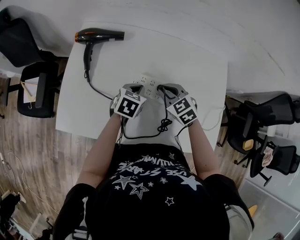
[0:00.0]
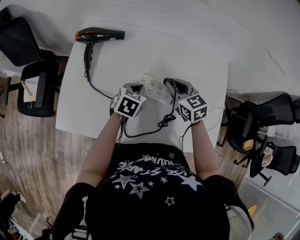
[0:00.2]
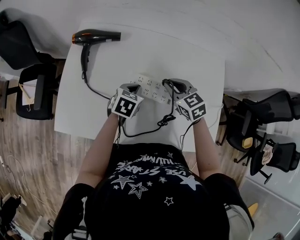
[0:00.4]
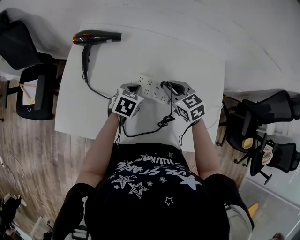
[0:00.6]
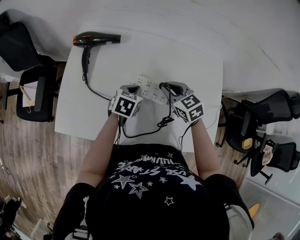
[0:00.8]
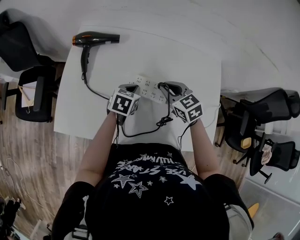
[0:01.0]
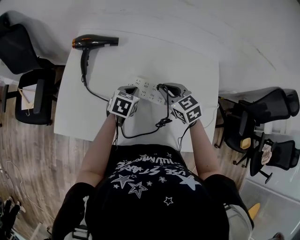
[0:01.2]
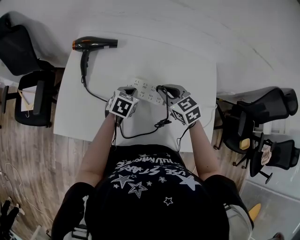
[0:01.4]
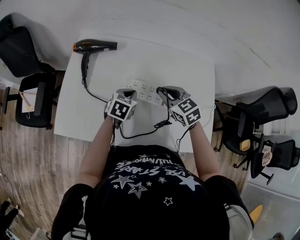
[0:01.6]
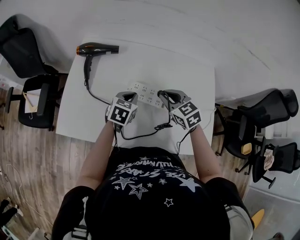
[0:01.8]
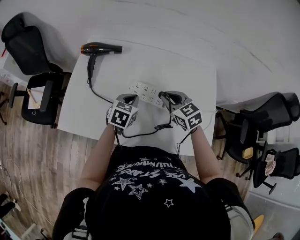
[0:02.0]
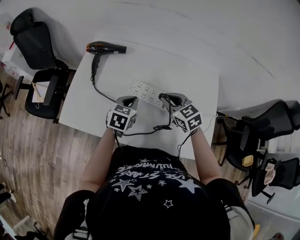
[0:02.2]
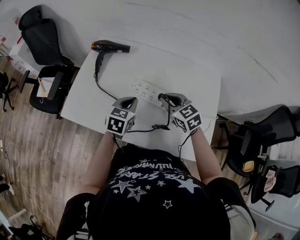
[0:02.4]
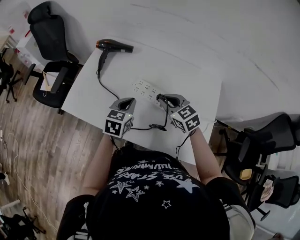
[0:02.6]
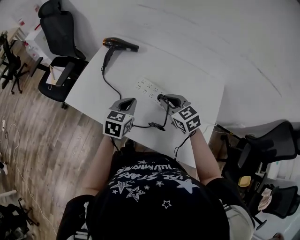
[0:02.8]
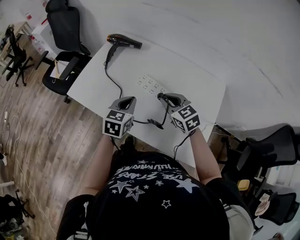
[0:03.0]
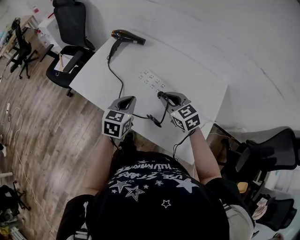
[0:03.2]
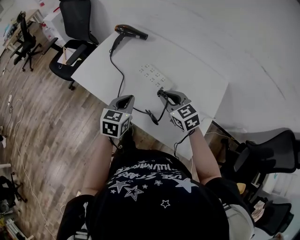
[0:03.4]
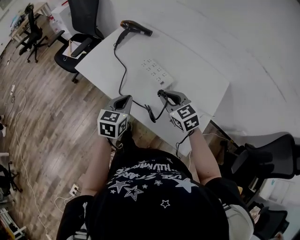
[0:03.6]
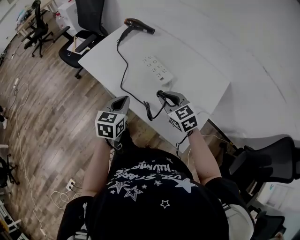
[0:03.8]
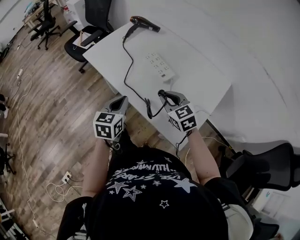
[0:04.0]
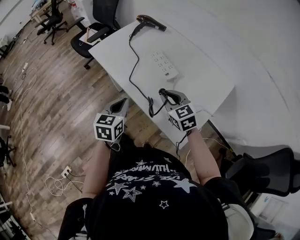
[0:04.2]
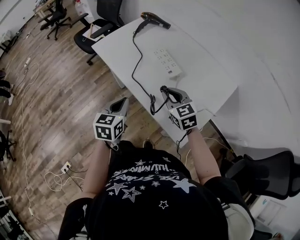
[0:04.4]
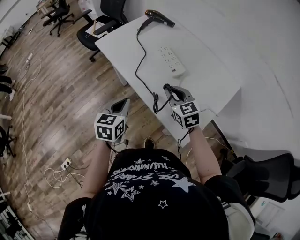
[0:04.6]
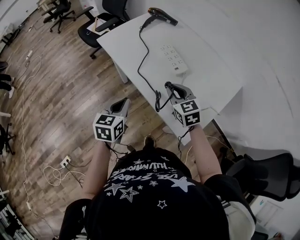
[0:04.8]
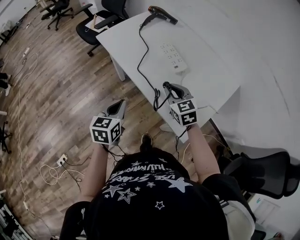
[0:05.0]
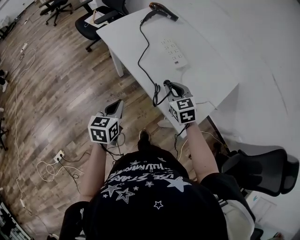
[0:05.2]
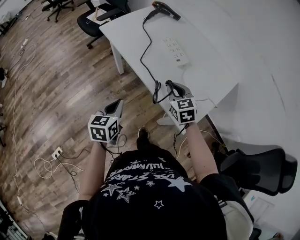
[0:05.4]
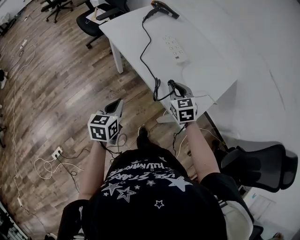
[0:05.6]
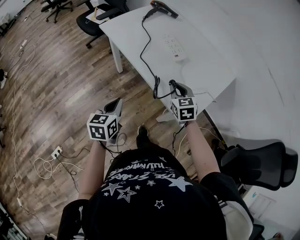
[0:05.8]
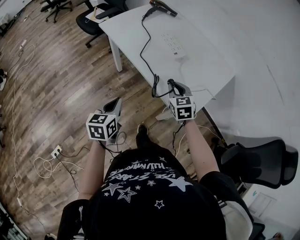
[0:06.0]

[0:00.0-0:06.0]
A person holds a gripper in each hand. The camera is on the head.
0:00.0 to 0:01.6: The right gripper goes approximately 5 cm upward.
0:01.6 to 0:03.0: The right gripper shifts by roughly 10 cm, and swivels some 20 degrees; the left gripper changes place by some 15 cm, and turns by roughly 30 degrees.
0:03.0 to 0:04.4: Both grippers travel together backward, roughly 20 cm. The left gripper changes its angle by roughly 30 degrees.
0:04.4 to 0:06.0: The left gripper heads backward and to the left, covering some 15 cm; the right gripper is displaced backward by roughly 5 cm.

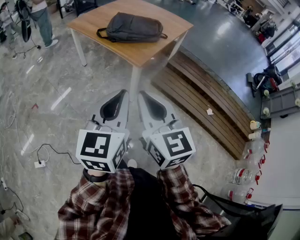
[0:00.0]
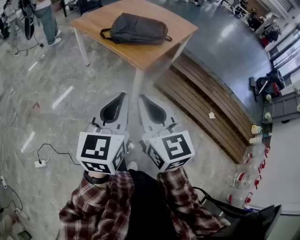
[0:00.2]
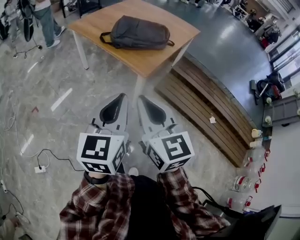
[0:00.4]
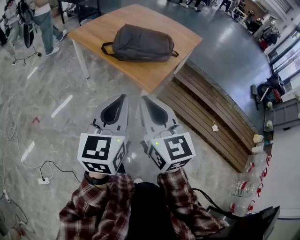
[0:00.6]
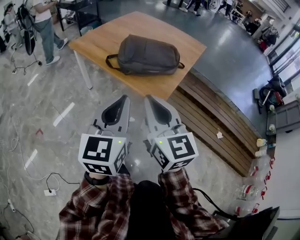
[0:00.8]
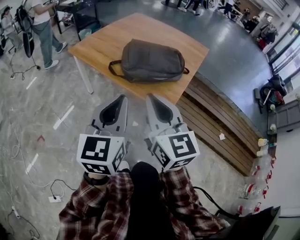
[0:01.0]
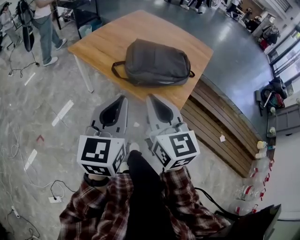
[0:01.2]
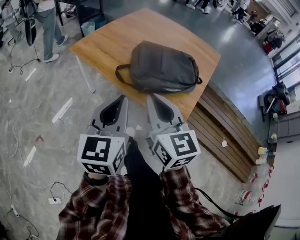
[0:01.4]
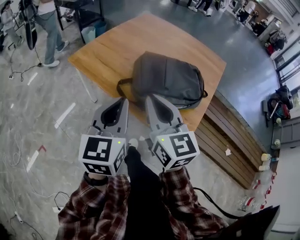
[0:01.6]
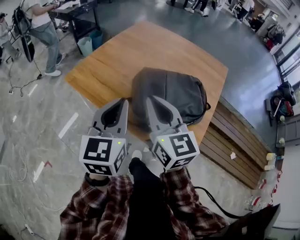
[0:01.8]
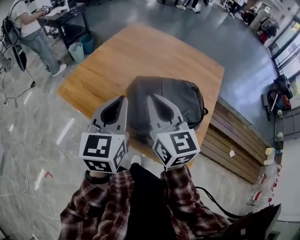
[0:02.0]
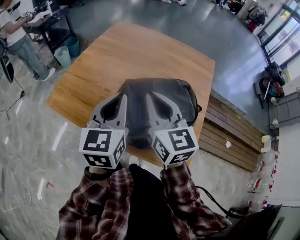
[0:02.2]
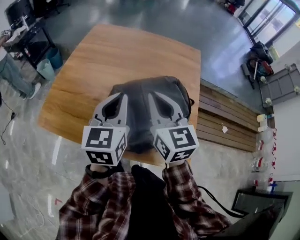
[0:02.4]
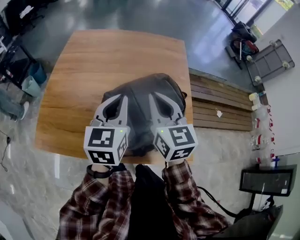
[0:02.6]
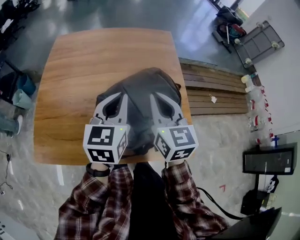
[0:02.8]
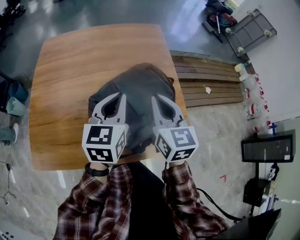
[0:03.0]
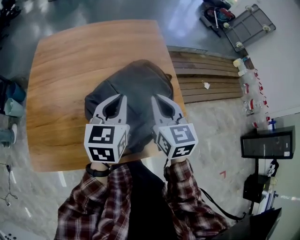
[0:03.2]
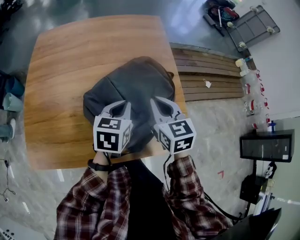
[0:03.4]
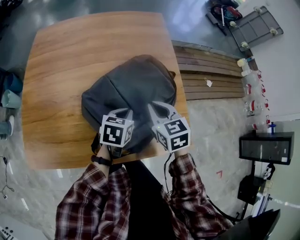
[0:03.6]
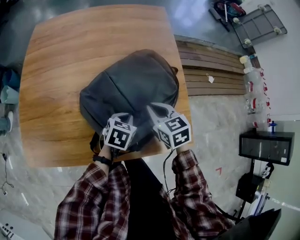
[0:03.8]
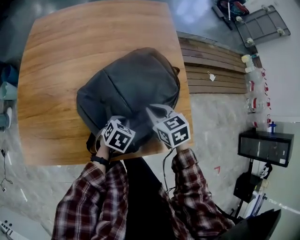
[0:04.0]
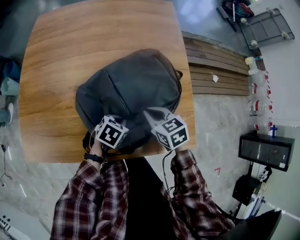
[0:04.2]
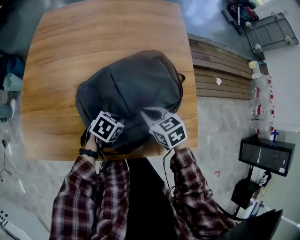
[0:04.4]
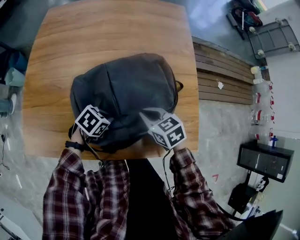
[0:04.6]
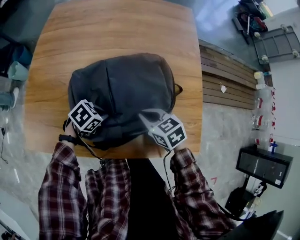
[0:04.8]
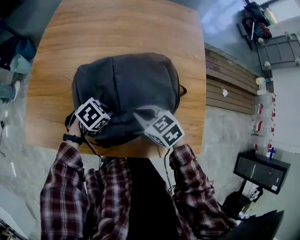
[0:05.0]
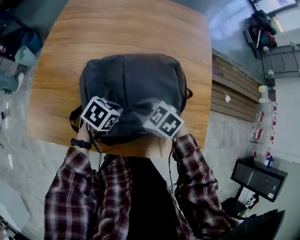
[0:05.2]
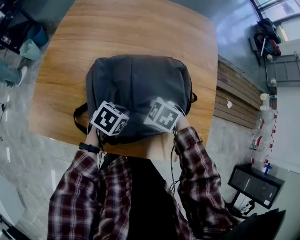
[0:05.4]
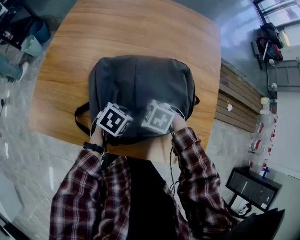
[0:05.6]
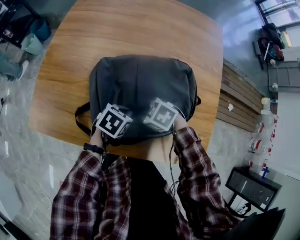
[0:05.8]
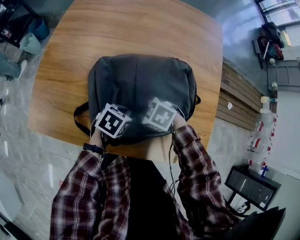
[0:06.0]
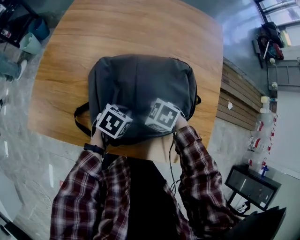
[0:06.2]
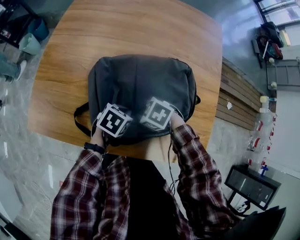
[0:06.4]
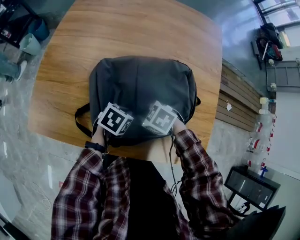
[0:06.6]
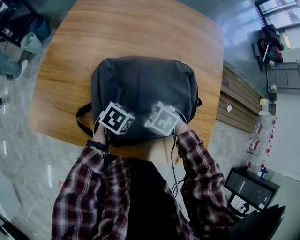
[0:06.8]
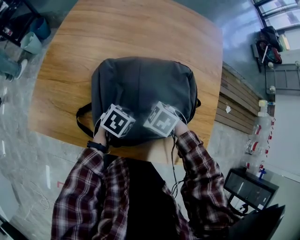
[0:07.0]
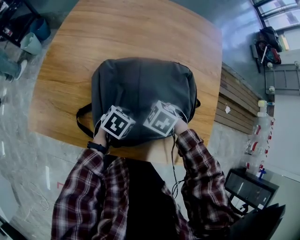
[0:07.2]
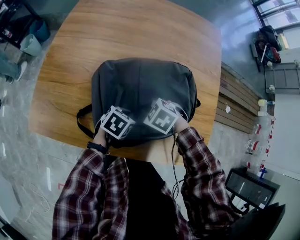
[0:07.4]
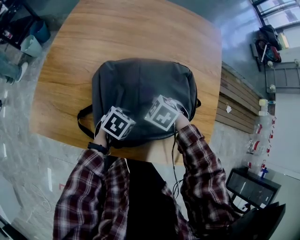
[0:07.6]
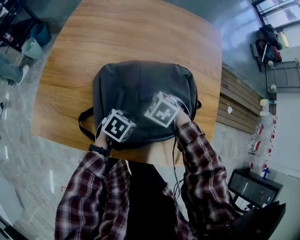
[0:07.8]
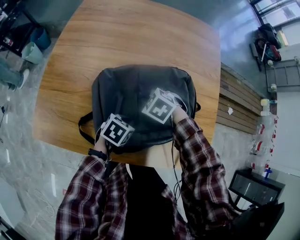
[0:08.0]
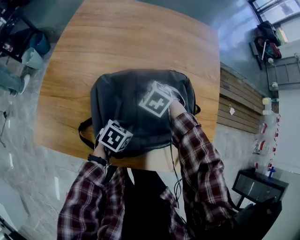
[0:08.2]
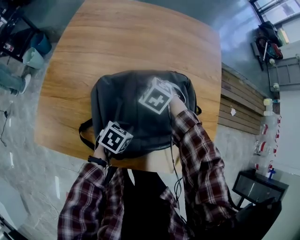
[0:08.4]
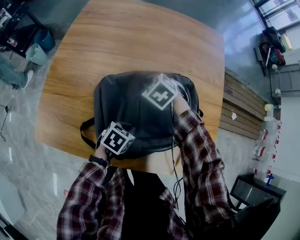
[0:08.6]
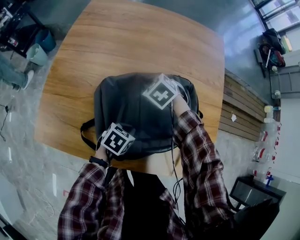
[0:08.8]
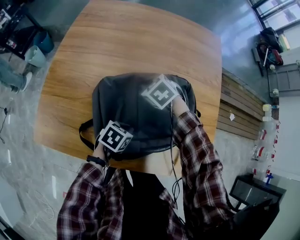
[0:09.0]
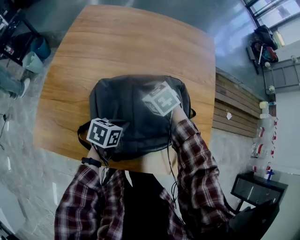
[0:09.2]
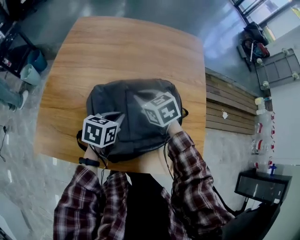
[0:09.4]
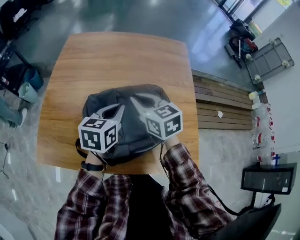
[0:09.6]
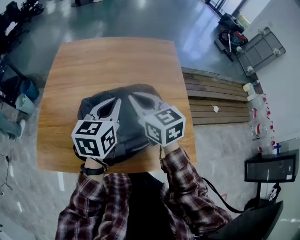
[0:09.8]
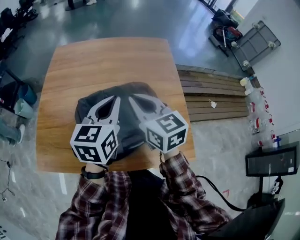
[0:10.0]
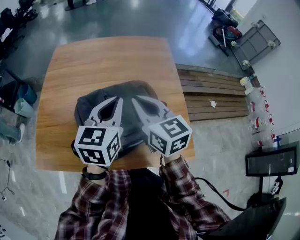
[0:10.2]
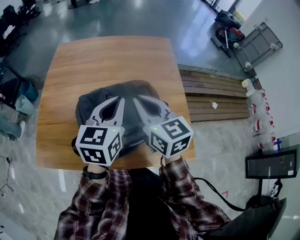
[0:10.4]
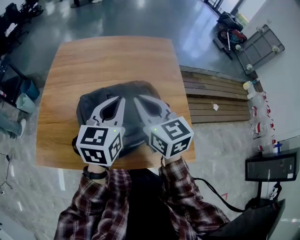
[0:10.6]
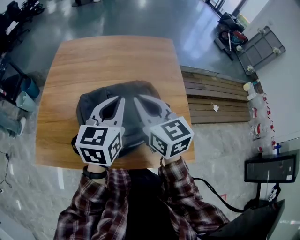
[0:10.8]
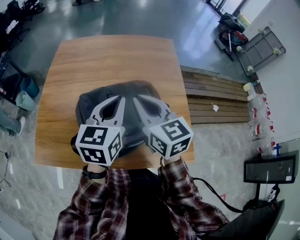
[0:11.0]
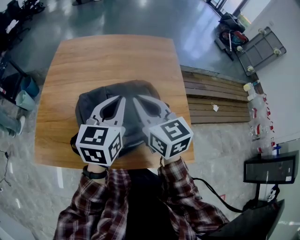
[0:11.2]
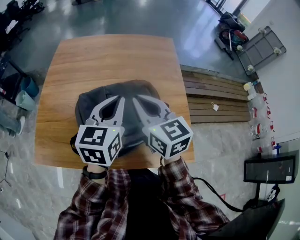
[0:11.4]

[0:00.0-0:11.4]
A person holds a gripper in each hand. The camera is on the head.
0:00.0 to 0:01.4: The pair of grippers is taken forward and to the left, approximately 50 cm.
0:01.4 to 0:02.8: The left gripper changes place by about 50 cm, and turns by about 40 degrees. The right gripper changes place by about 40 cm, and rotates roughly 50 degrees.
0:02.8 to 0:04.2: The grippers both shift downward by approximately 30 cm. The right gripper tilts its fingers approximately 30 degrees downward, while the left gripper tips its fingers downward by approximately 40 degrees.
0:04.2 to 0:05.6: The right gripper changes place by approximately 15 cm, changes its angle by some 60 degrees, and opens its fingers; the left gripper changes place by about 10 cm.
0:05.6 to 0:07.2: The grippers move only a little.
0:07.2 to 0:08.6: The right gripper changes place by roughly 15 cm.
0:08.6 to 0:10.0: The right gripper heads upward and backward, covering about 30 cm, and angles its fingers upward, by about 50 degrees; the left gripper is displaced upward by about 35 cm, and tips its fingers upward by about 40 degrees.
0:10.0 to 0:11.4: The grippers move only a little.

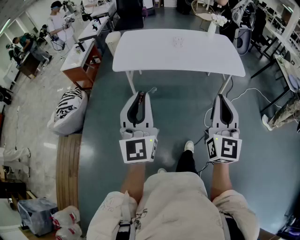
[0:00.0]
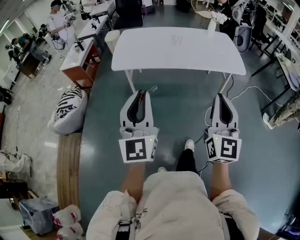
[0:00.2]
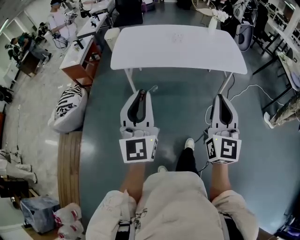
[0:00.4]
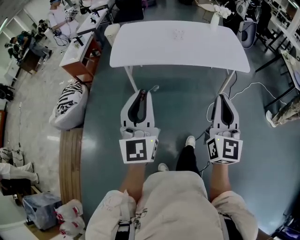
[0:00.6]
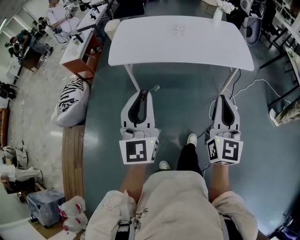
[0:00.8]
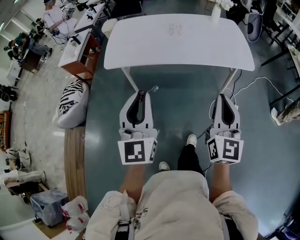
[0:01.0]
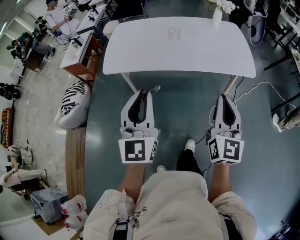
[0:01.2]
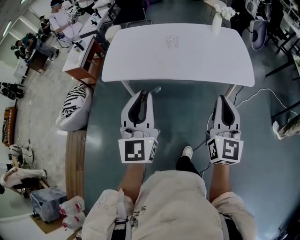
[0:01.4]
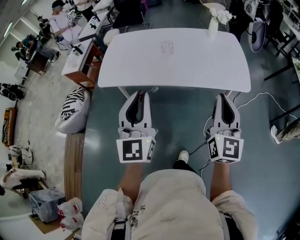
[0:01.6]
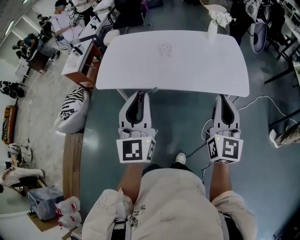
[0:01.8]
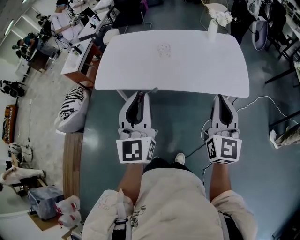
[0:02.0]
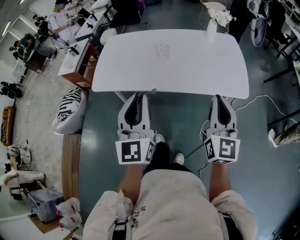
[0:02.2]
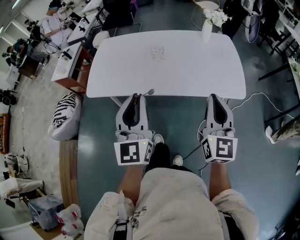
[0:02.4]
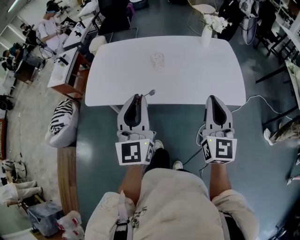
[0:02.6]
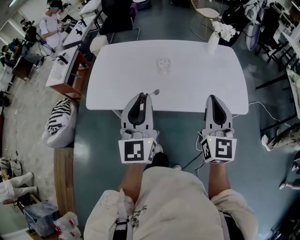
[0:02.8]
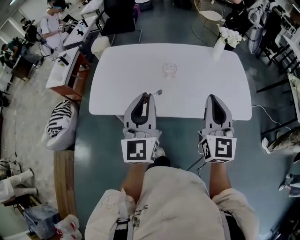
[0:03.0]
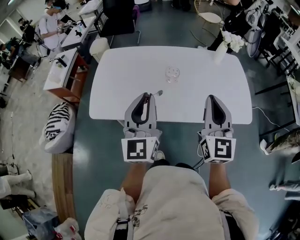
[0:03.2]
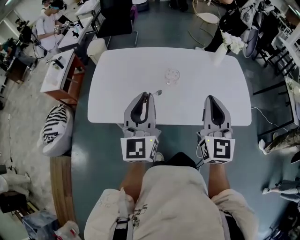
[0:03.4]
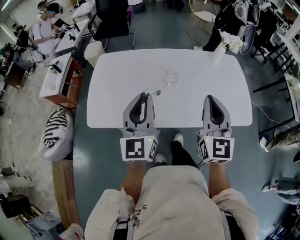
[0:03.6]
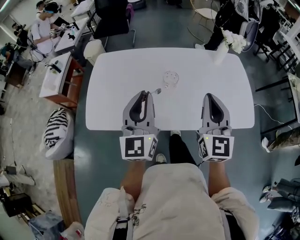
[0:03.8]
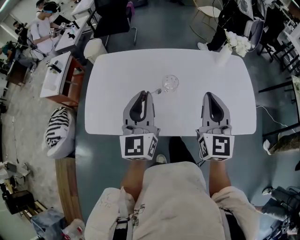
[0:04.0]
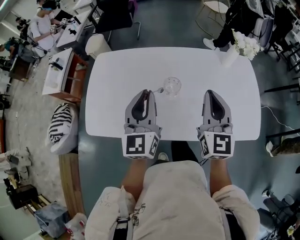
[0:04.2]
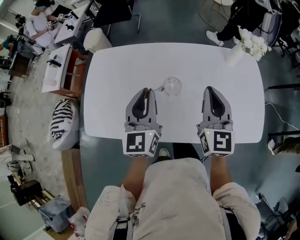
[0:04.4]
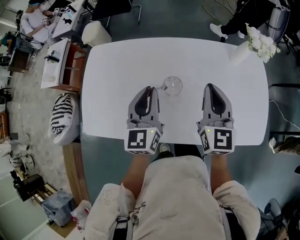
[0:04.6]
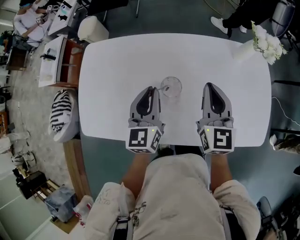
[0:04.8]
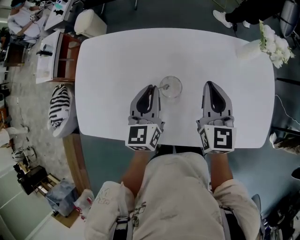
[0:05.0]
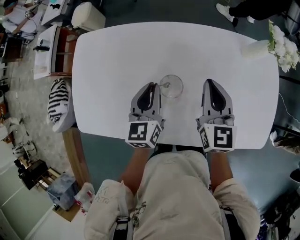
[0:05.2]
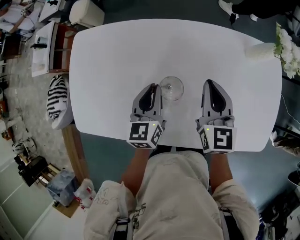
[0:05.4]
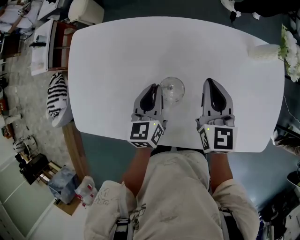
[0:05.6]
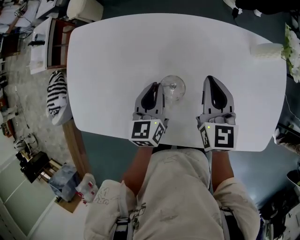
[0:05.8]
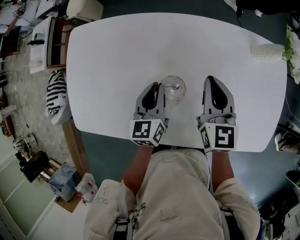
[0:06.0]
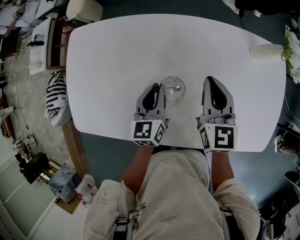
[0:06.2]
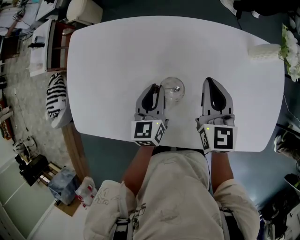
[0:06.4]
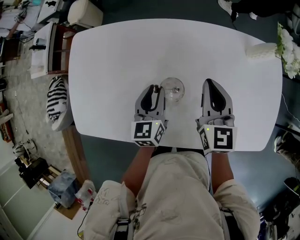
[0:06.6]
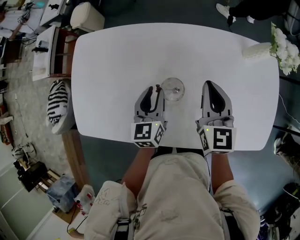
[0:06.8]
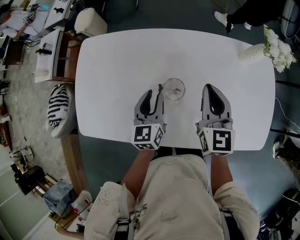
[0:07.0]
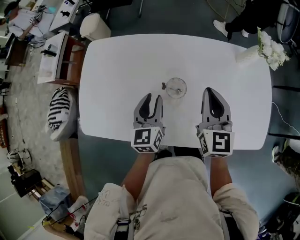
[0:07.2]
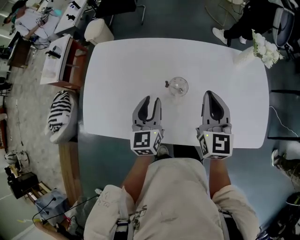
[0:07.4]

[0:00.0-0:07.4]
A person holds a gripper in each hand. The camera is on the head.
0:00.0 to 0:01.4: The grippers both shift forward and to the right by some 25 cm.
0:01.4 to 0:03.0: The two grippers go some 25 cm forward.
0:03.0 to 0:04.4: The grippers both shift forward by about 25 cm.
0:04.4 to 0:06.0: The two grippers go about 20 cm downward and forward. The left gripper turns by approximately 30 degrees.
0:06.0 to 0:07.4: The left gripper travels upward, backward and to the left by about 15 cm, while the right gripper travels backward and upward by approximately 15 cm.
